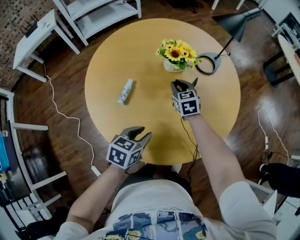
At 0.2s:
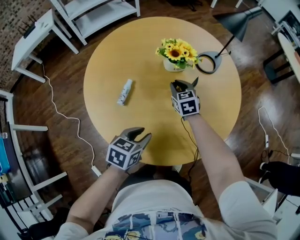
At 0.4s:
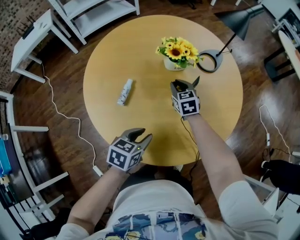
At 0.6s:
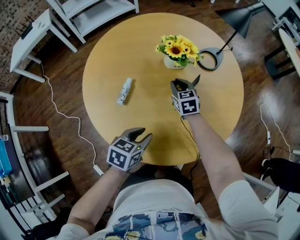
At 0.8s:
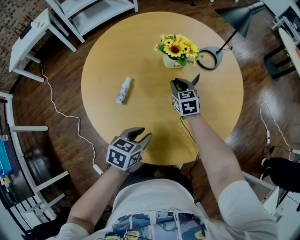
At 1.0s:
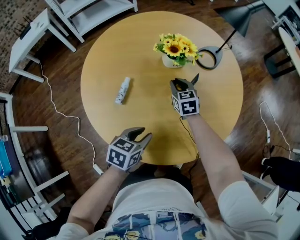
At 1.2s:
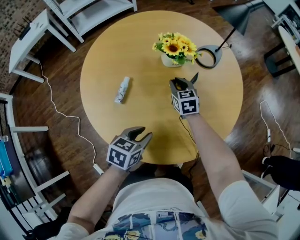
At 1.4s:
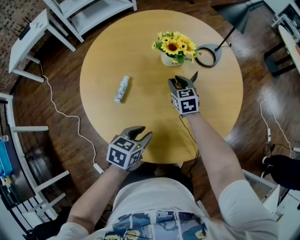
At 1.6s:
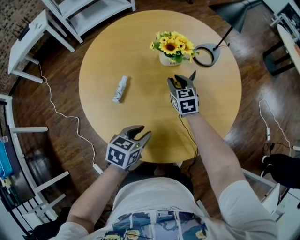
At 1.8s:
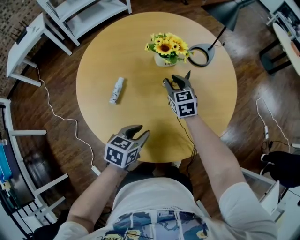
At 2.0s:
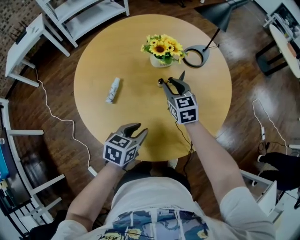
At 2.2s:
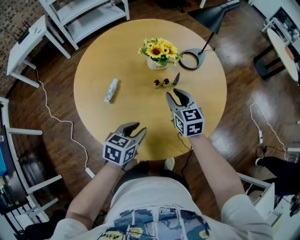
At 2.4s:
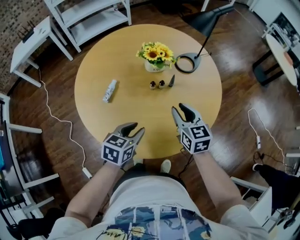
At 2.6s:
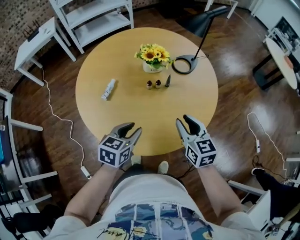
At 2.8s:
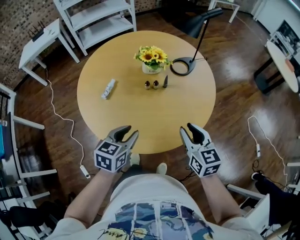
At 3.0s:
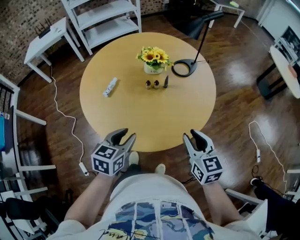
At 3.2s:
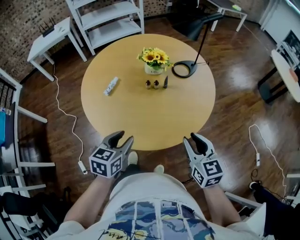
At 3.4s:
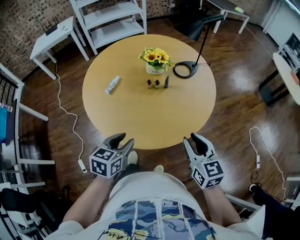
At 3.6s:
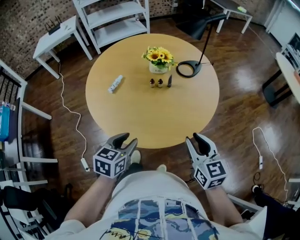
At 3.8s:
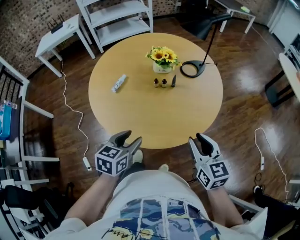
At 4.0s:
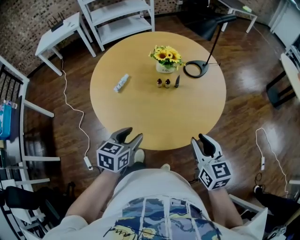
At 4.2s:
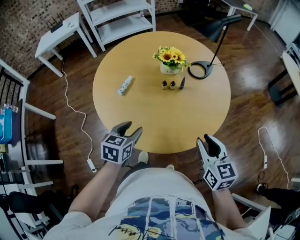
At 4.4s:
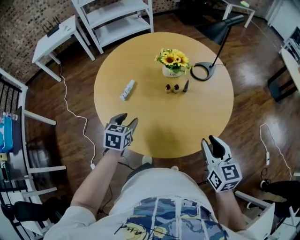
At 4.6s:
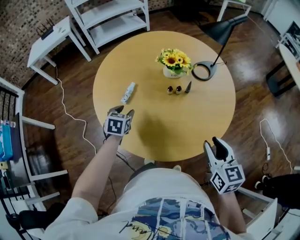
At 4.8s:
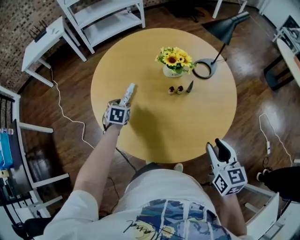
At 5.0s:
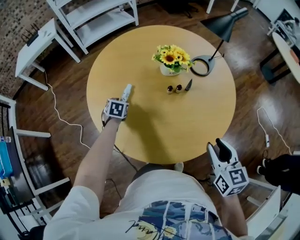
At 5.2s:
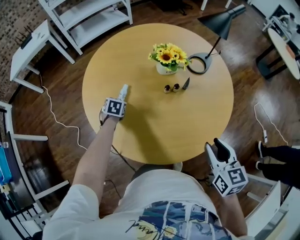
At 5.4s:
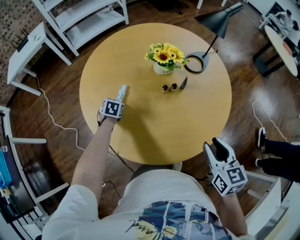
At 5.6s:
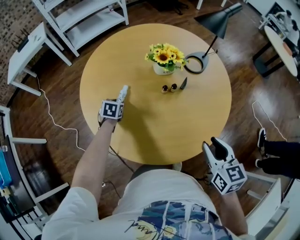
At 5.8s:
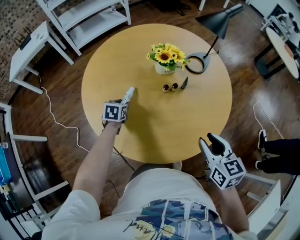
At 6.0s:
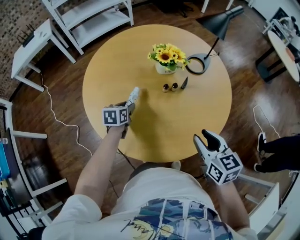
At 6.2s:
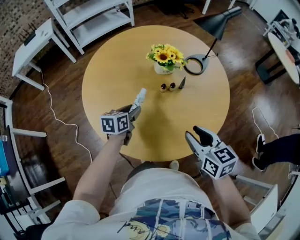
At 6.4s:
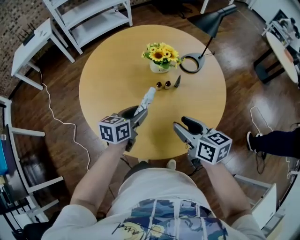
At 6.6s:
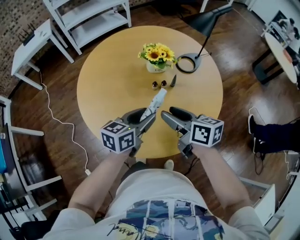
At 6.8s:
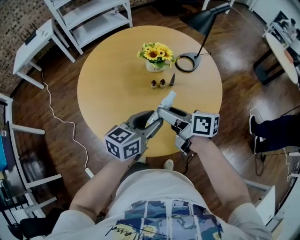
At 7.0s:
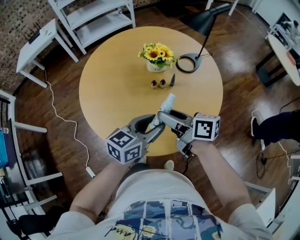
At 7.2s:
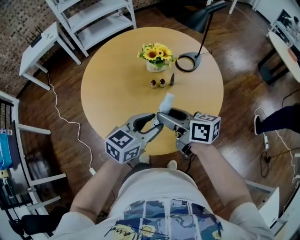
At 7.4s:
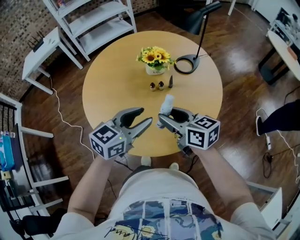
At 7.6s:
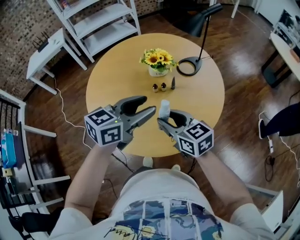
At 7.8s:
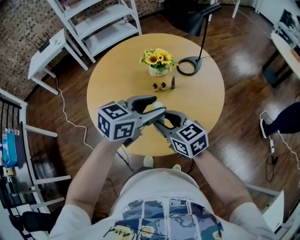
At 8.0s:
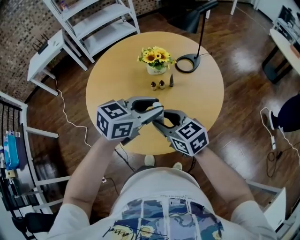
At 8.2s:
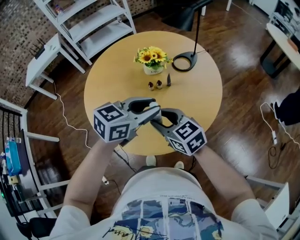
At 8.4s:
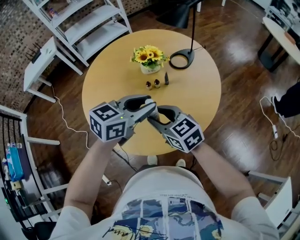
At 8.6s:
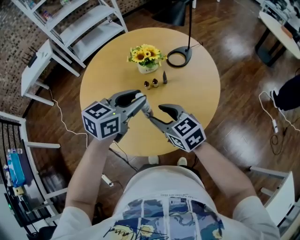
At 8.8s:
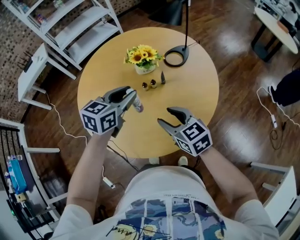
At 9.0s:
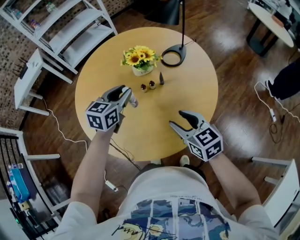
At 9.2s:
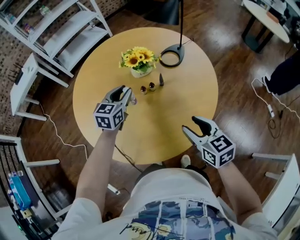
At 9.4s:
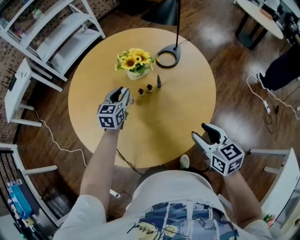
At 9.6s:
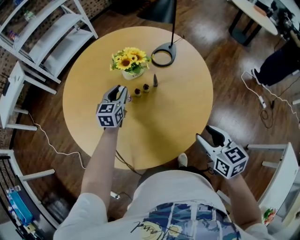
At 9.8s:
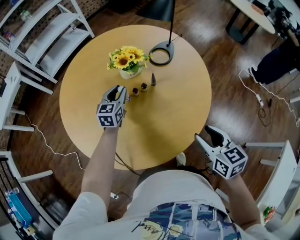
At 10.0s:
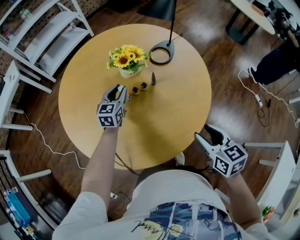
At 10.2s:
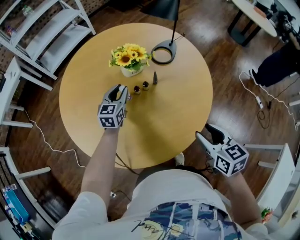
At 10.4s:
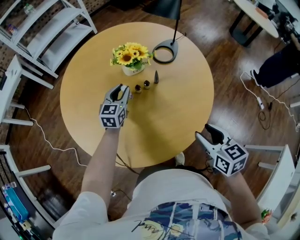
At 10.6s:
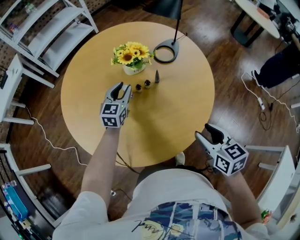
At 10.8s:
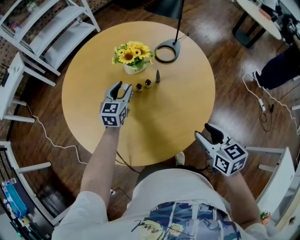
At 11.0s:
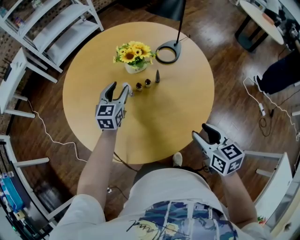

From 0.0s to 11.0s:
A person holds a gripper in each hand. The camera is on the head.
From 0.0s to 1.6s: The grippers make only small movements.
From 1.6s to 3.2s: The right gripper moves backward, to the right and upward, approximately 50 cm, while the left gripper travels backward, upward and to the right by roughly 20 cm, and changes its angle by roughly 20 degrees.
From 3.2s to 4.8s: The right gripper goes some 10 cm to the left and forward; the left gripper is displaced forward, to the left and downward by approximately 40 cm, and swivels some 30 degrees.
From 4.8s to 6.2s: The right gripper travels to the left by roughly 5 cm; the left gripper is displaced to the right by some 10 cm, and swivels some 40 degrees.
From 6.2s to 7.8s: The right gripper changes its angle by about 20 degrees. The left gripper goes about 30 cm upward, to the right and backward, and turns by approximately 30 degrees.
From 7.8s to 9.4s: The right gripper shifts approximately 15 cm to the right, and changes its angle by about 30 degrees, while the left gripper goes about 30 cm forward, downward and to the left, turns by roughly 20 degrees, and closes.
From 9.4s to 11.0s: The left gripper opens up.

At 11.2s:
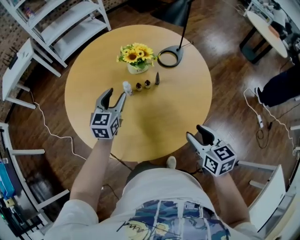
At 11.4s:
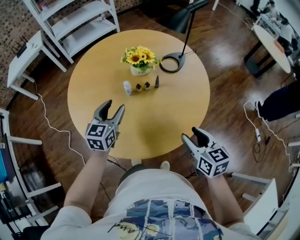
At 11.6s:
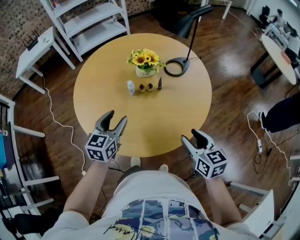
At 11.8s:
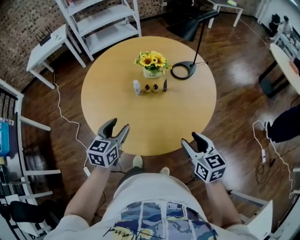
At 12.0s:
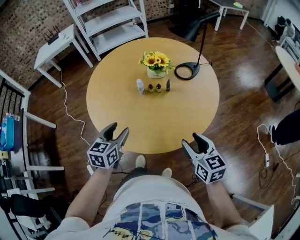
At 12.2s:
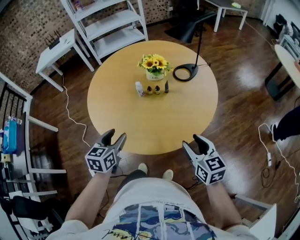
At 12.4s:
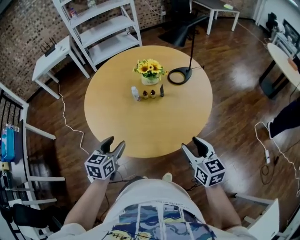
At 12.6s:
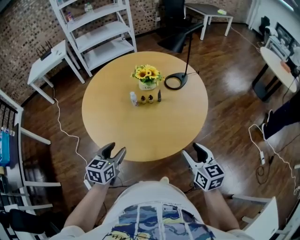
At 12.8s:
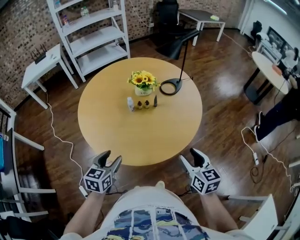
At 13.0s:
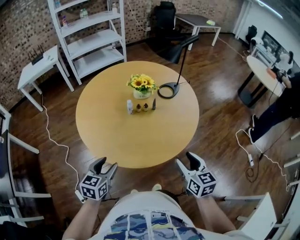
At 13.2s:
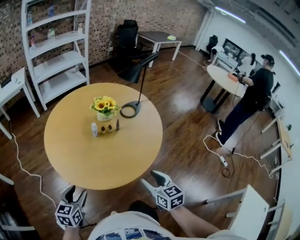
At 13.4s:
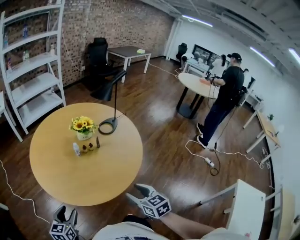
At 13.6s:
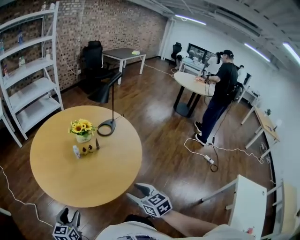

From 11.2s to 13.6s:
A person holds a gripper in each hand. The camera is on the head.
From 11.2s to 12.4s: The right gripper moves backward and to the right, some 10 cm; the left gripper shifts roughly 30 cm backward, and turns by some 20 degrees.
From 12.4s to 13.6s: Both grippers travel together backward and to the left, some 15 cm.

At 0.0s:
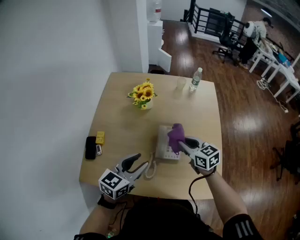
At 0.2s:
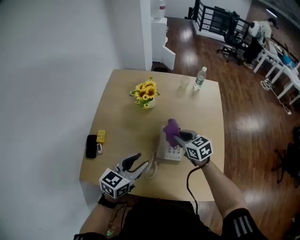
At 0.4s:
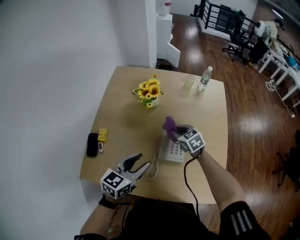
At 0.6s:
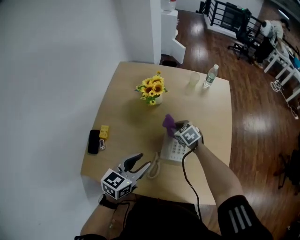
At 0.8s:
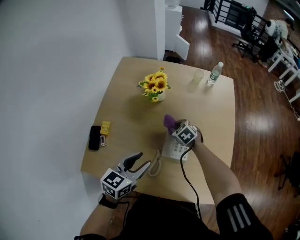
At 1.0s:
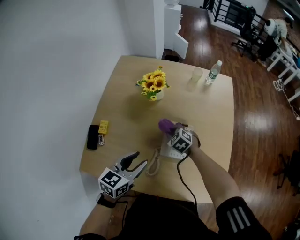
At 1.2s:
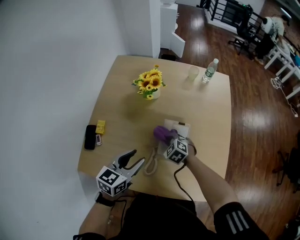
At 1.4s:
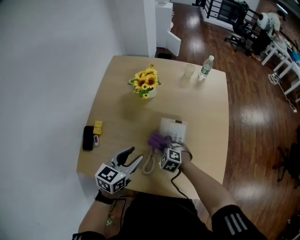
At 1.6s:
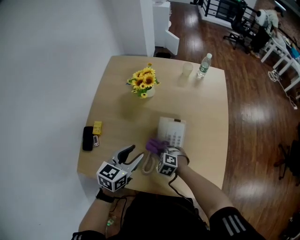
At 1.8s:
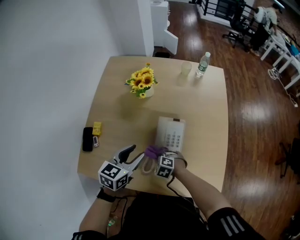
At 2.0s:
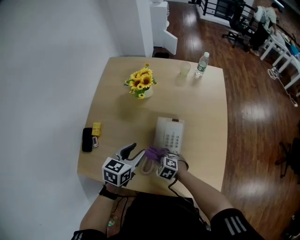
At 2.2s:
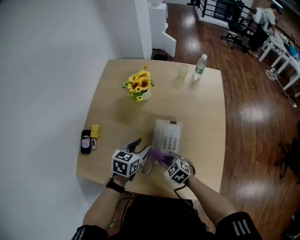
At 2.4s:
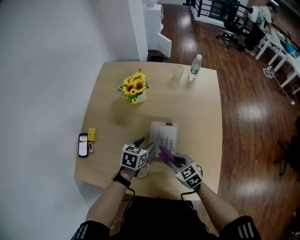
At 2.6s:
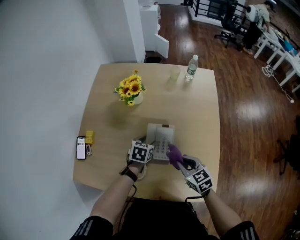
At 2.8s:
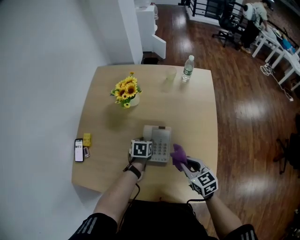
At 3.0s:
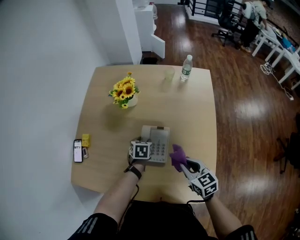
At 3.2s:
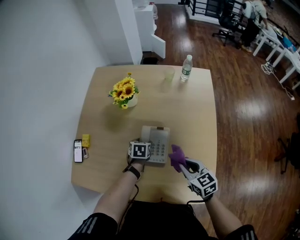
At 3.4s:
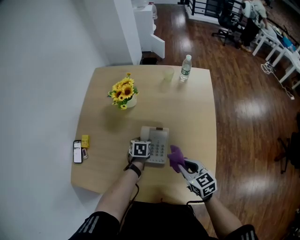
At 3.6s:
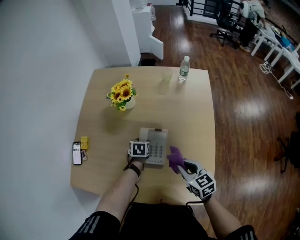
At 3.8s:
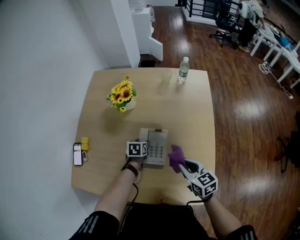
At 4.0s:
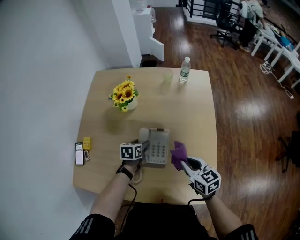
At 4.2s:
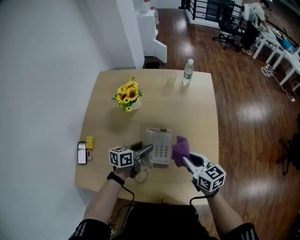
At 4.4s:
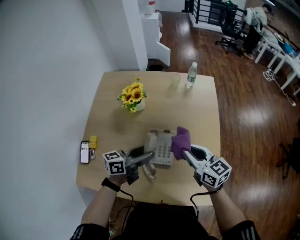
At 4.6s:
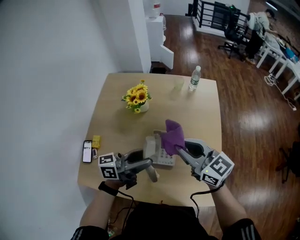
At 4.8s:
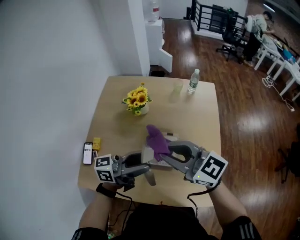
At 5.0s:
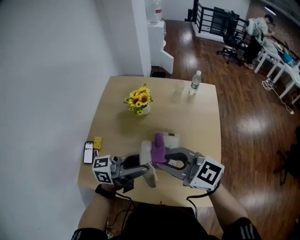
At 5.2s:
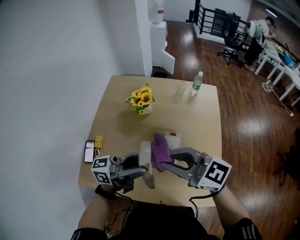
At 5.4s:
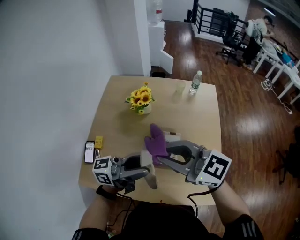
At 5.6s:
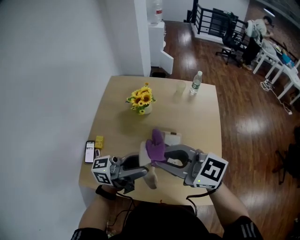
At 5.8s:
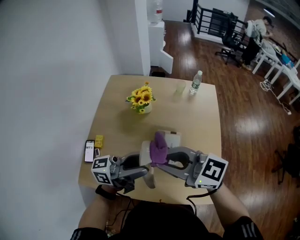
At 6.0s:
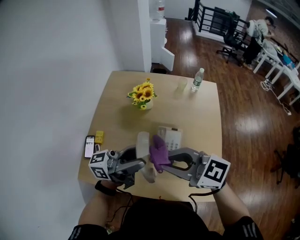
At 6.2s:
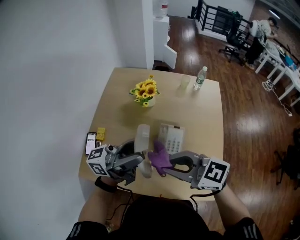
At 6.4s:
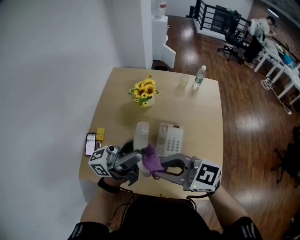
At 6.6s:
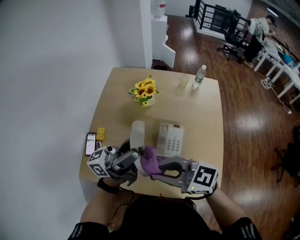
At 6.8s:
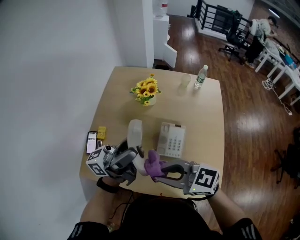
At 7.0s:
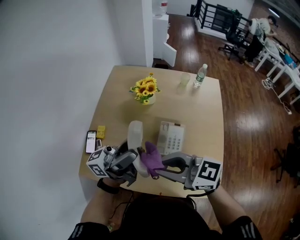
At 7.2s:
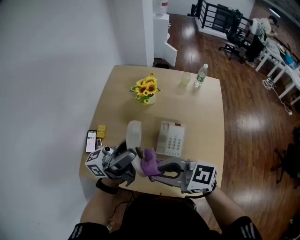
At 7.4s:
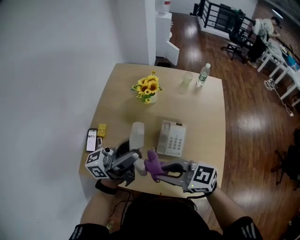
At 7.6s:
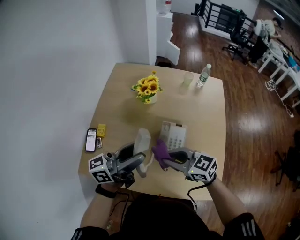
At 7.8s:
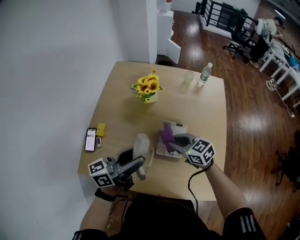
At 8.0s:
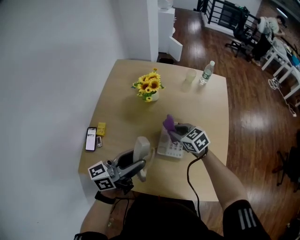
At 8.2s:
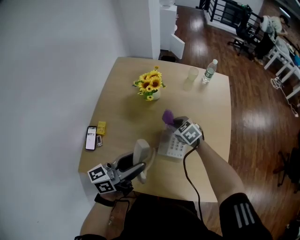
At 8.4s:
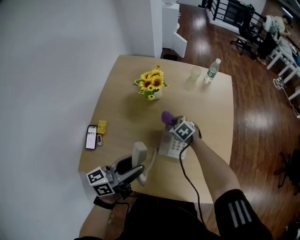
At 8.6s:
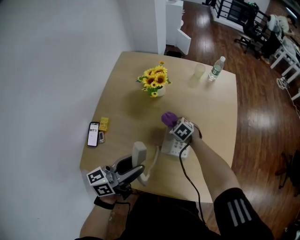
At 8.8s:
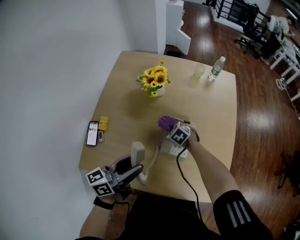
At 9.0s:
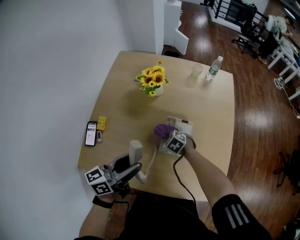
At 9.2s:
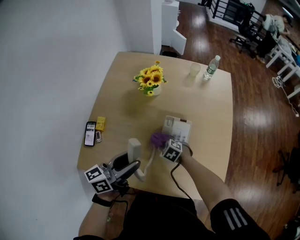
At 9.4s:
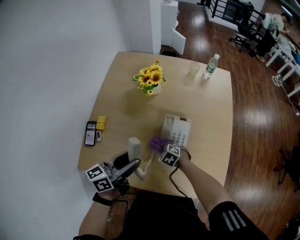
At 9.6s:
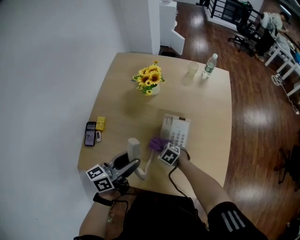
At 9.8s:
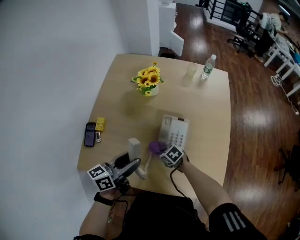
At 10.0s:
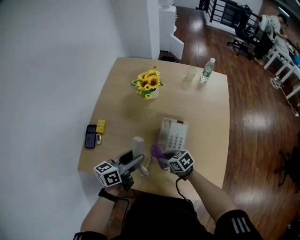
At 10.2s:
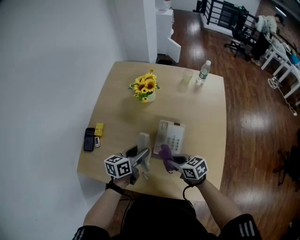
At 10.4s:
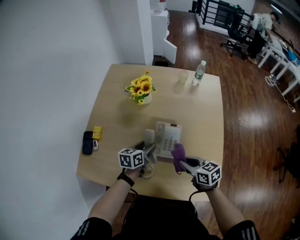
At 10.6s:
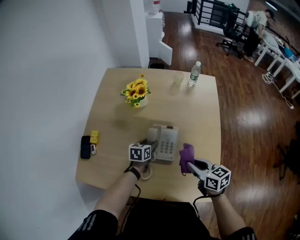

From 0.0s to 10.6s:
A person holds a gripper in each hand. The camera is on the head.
From 0.0s to 1.6s: The left gripper travels downward and forward by approximately 10 cm. The right gripper is displaced downward and to the left by about 25 cm, and tips its fingers downward by about 30 degrees.
From 1.6s to 3.0s: The right gripper heads to the right and upward, covering some 25 cm, and rolls clockwise, seen from behind, by roughly 40 degrees. The left gripper shifts roughly 25 cm downward, forward and to the right, and rotates roughly 30 degrees.
From 3.0s to 4.6s: The right gripper heads upward, covering about 20 cm, and changes its angle by roughly 30 degrees. The left gripper heads upward and backward, covering some 30 cm, and angles its fingers upward, by about 70 degrees.
From 4.6s to 6.0s: The right gripper changes place by about 15 cm, and turns by approximately 30 degrees, while the left gripper goes about 10 cm upward.
From 6.0s to 7.6s: The right gripper heads downward, covering some 15 cm. Meanwhile the left gripper changes place by about 5 cm.
From 7.6s to 9.0s: The right gripper moves downward and forward, about 25 cm, and tilts its fingers about 40 degrees downward; the left gripper travels downward by about 10 cm.
From 9.0s to 10.6s: The right gripper heads upward, to the right and backward, covering roughly 30 cm, and tilts its fingers roughly 40 degrees upward. Meanwhile the left gripper is displaced downward, to the right and forward by some 30 cm, and tips its fingers downward by some 40 degrees.
